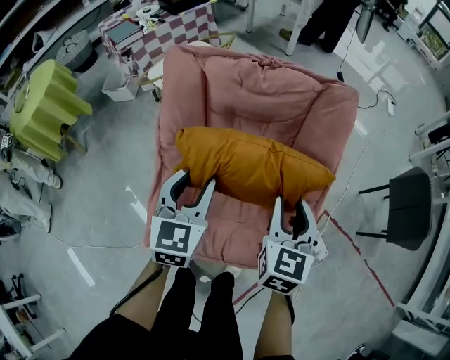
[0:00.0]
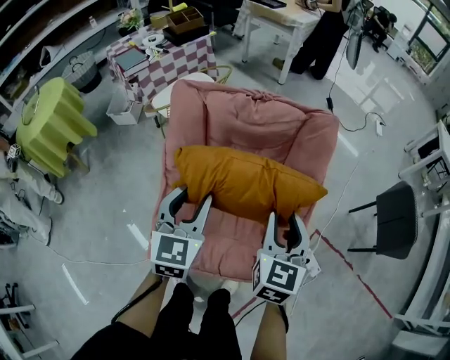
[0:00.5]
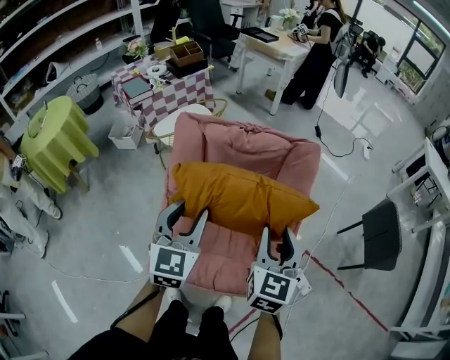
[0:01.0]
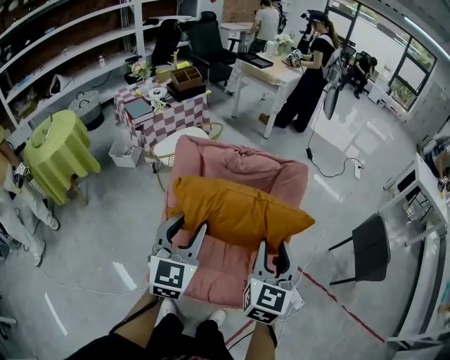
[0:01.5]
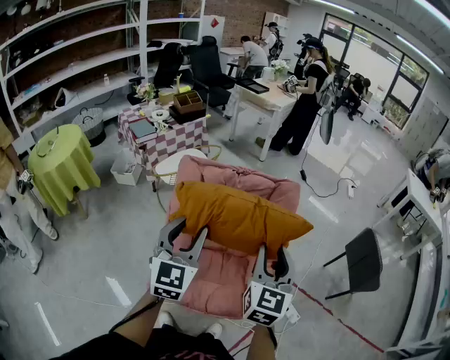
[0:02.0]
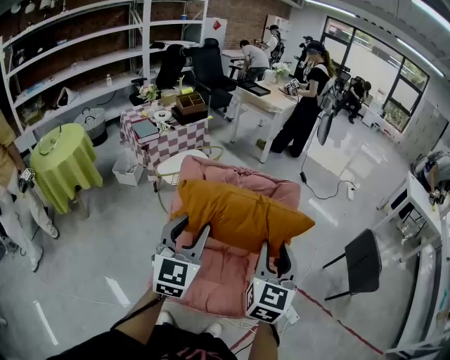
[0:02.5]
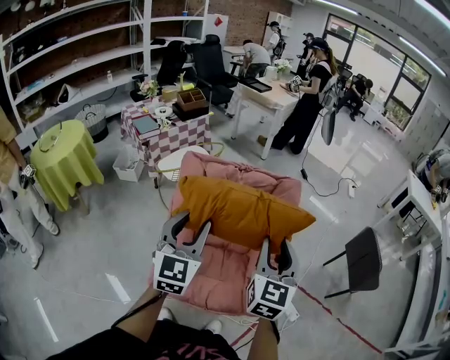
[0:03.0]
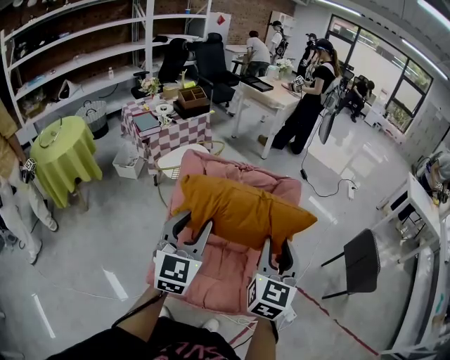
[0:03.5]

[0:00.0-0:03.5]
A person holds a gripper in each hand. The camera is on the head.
0:00.0 to 0:02.0: Both grippers travel together upward, approximately 25 cm.
0:02.0 to 0:03.5: The grippers move only a little.

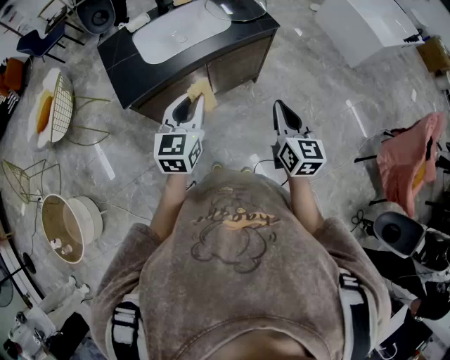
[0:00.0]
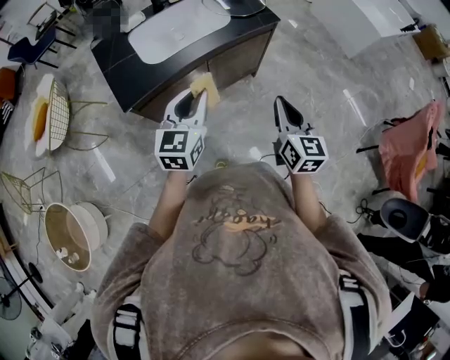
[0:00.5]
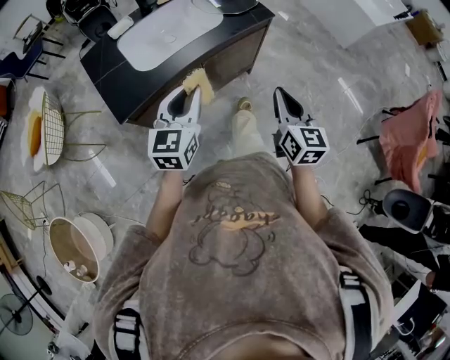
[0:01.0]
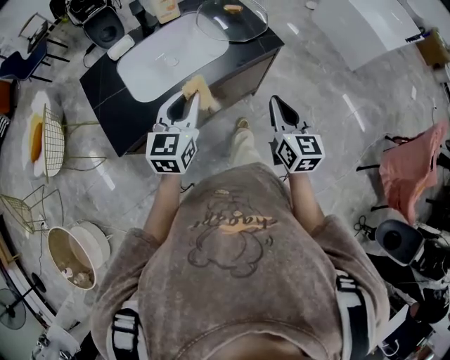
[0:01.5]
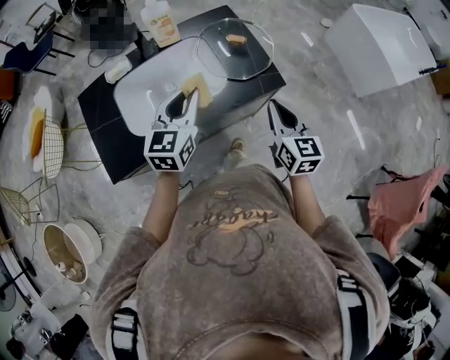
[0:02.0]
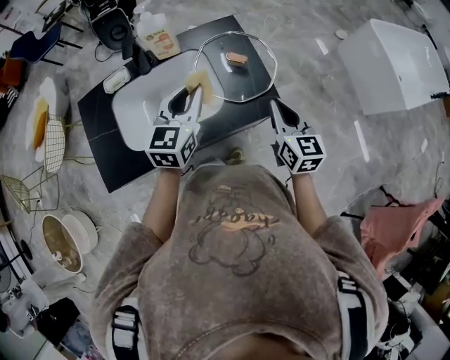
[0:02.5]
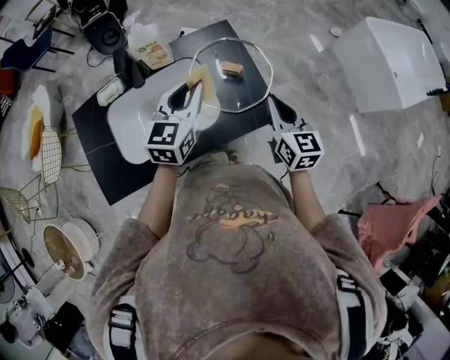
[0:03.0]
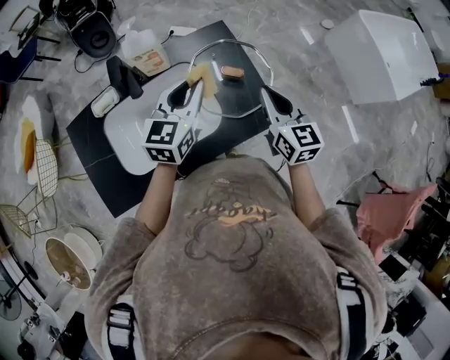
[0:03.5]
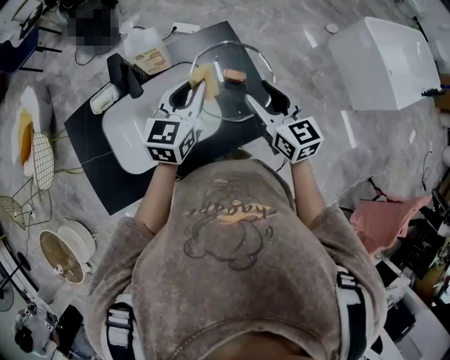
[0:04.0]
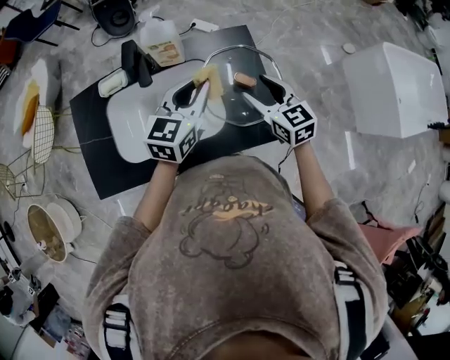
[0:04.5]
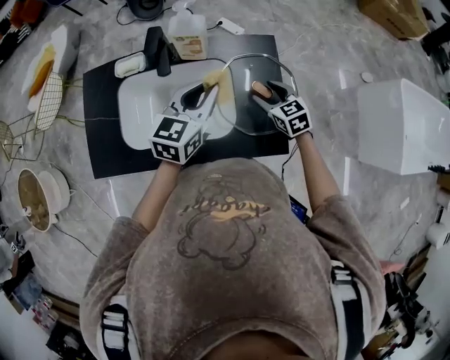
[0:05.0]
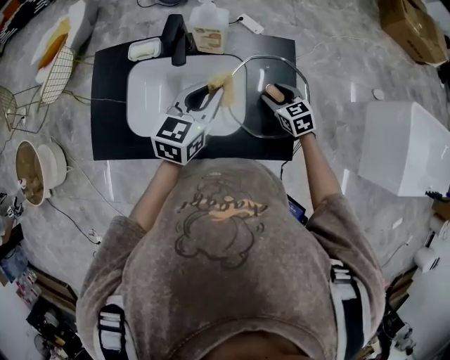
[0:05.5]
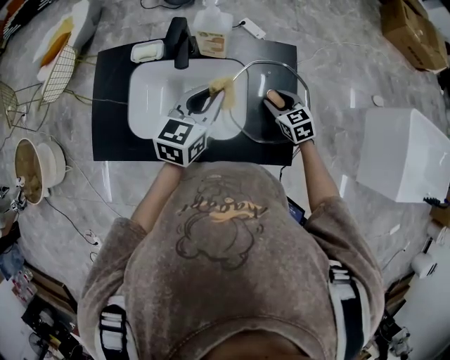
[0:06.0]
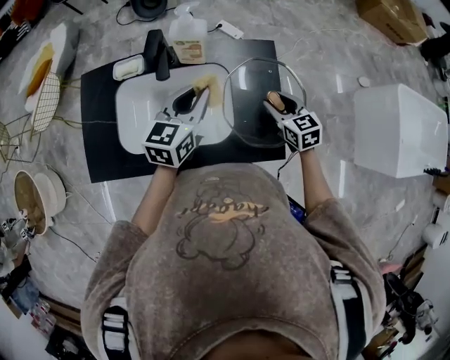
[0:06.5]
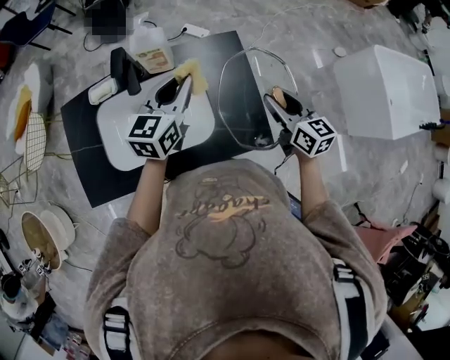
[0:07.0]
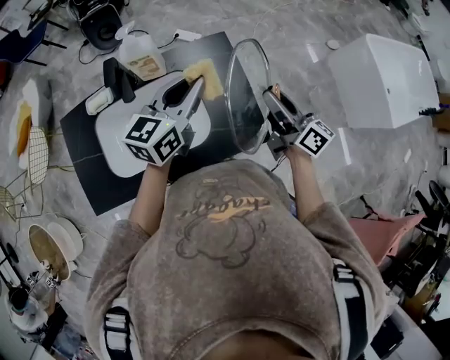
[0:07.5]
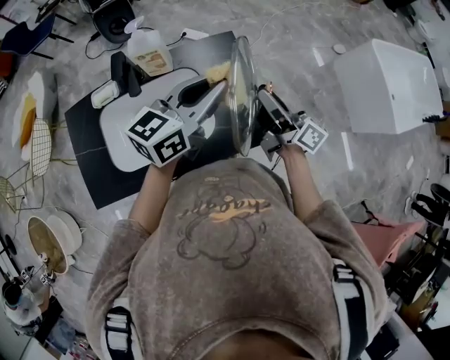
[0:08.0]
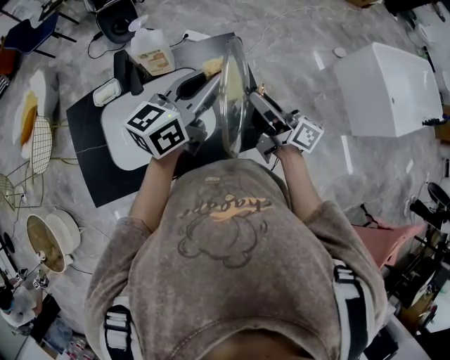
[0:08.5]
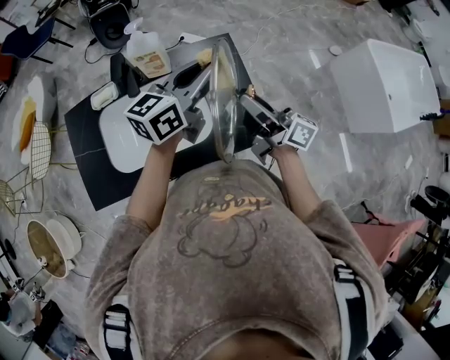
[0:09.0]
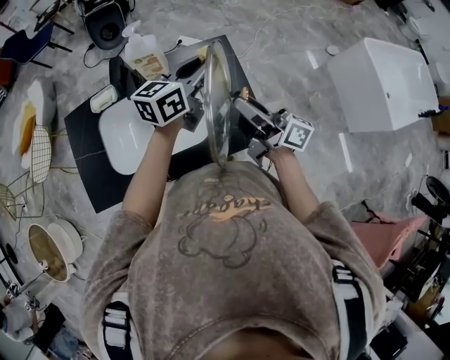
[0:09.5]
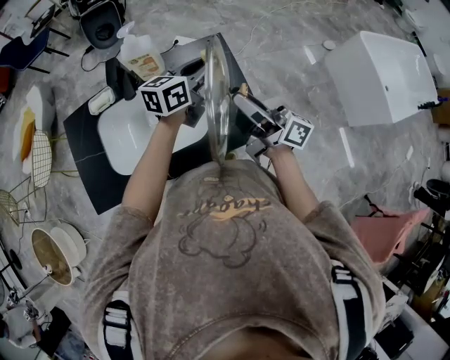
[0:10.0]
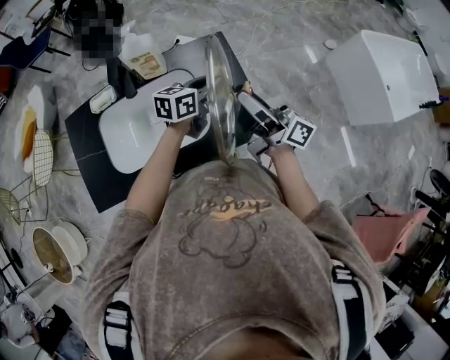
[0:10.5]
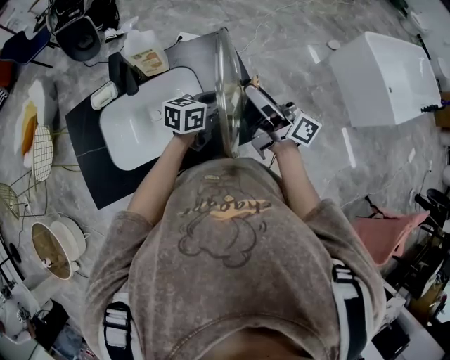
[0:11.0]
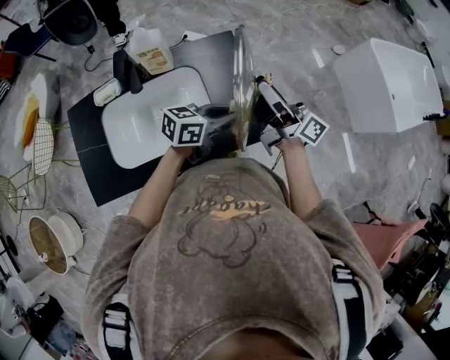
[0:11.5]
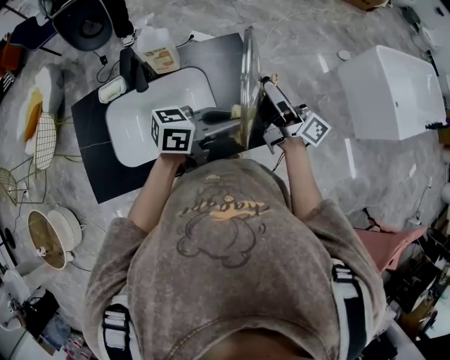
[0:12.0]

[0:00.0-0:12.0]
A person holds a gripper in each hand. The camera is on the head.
0:00.0 to 0:02.0: The two grippers go approximately 40 cm forward.
0:02.0 to 0:04.0: The two grippers go about 20 cm forward. The right gripper opens its fingers.
0:04.0 to 0:06.0: The left gripper moves to the left, about 5 cm, and swivels approximately 20 degrees. The right gripper heads downward and forward, covering approximately 20 cm, and rotates approximately 40 degrees.
0:06.0 to 0:08.0: The left gripper moves about 15 cm, and swivels approximately 40 degrees. The right gripper goes about 20 cm upward, and angles its fingers upward, by some 50 degrees.
0:08.0 to 0:10.0: The left gripper is displaced downward and forward by about 10 cm. Meanwhile the right gripper moves roughly 10 cm.
0:10.0 to 0:12.0: The right gripper heads forward, covering about 5 cm, while the left gripper shifts about 15 cm backward, and turns by about 30 degrees.

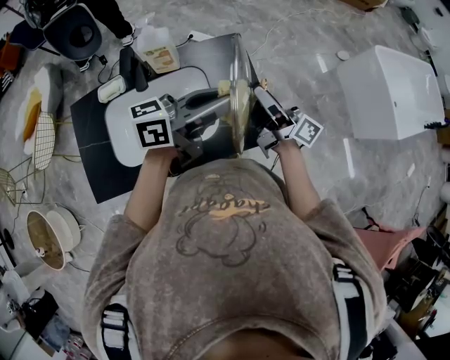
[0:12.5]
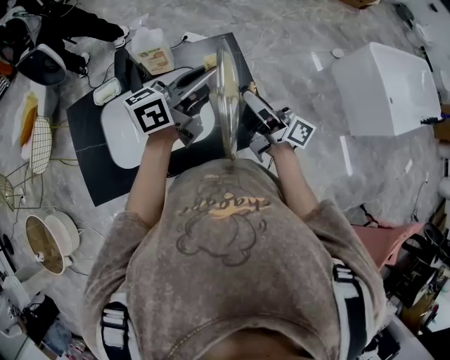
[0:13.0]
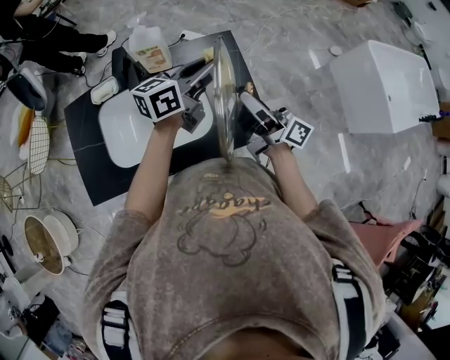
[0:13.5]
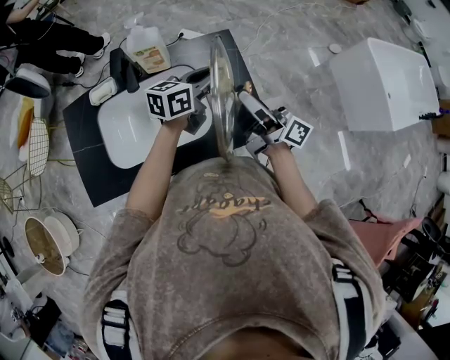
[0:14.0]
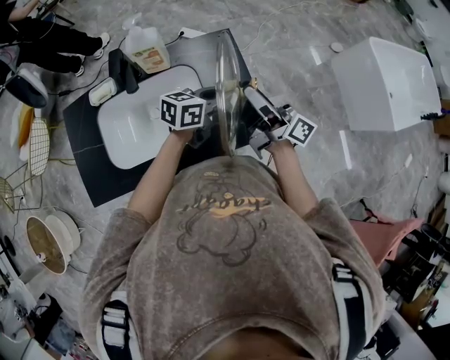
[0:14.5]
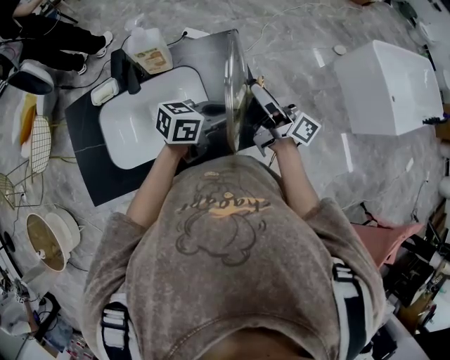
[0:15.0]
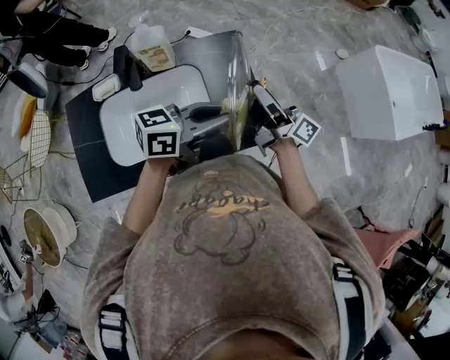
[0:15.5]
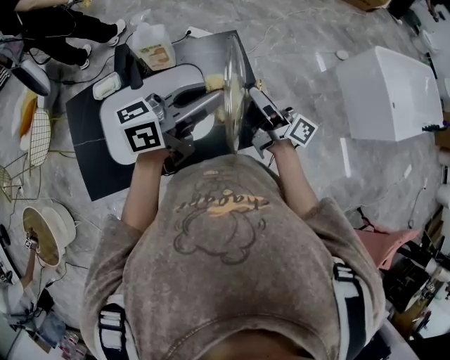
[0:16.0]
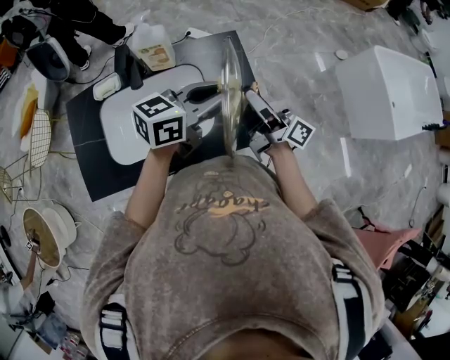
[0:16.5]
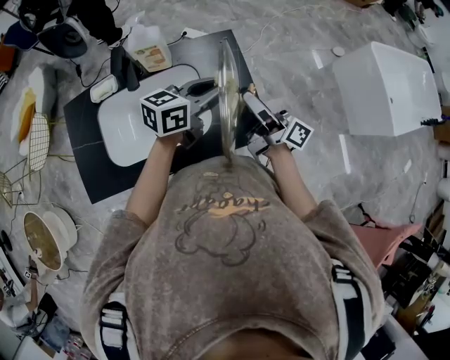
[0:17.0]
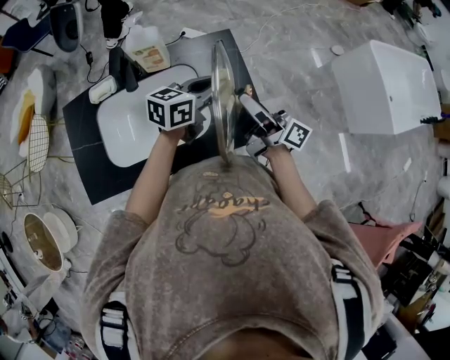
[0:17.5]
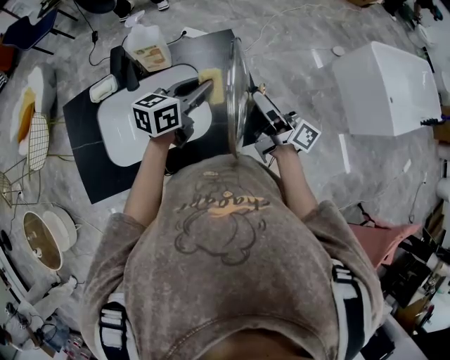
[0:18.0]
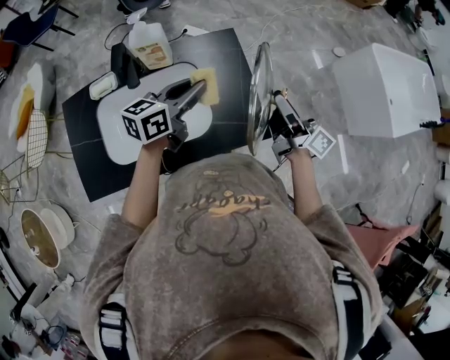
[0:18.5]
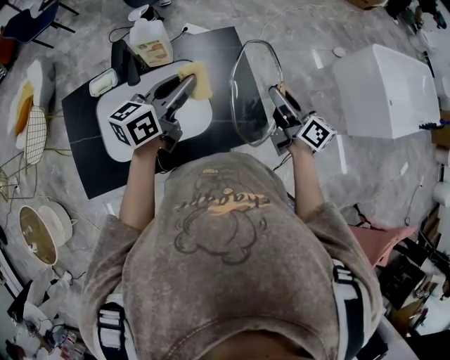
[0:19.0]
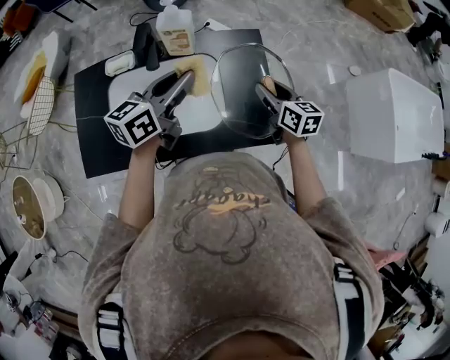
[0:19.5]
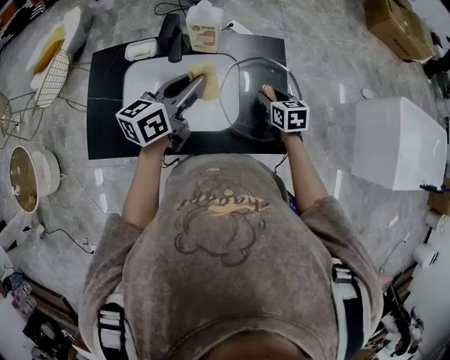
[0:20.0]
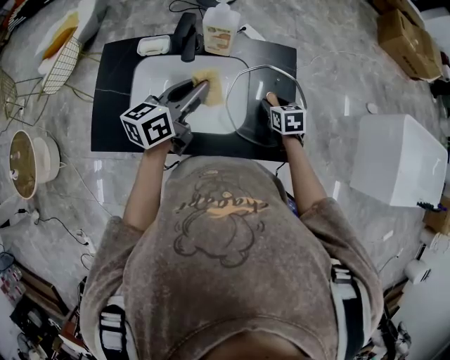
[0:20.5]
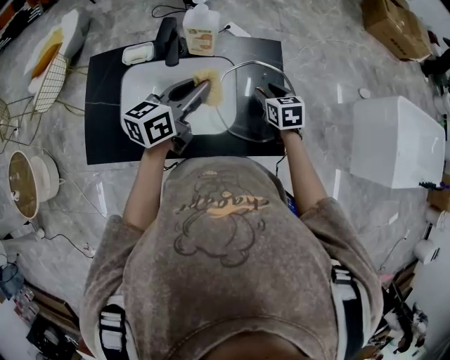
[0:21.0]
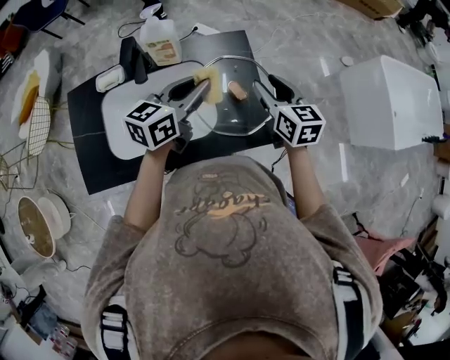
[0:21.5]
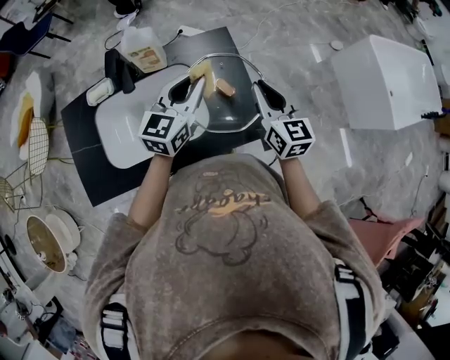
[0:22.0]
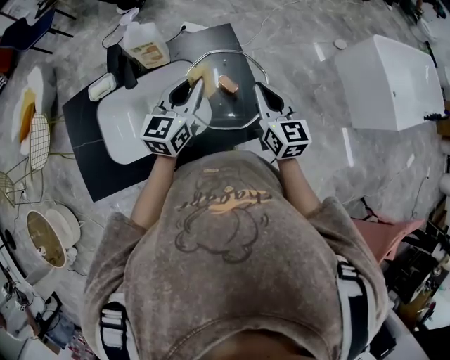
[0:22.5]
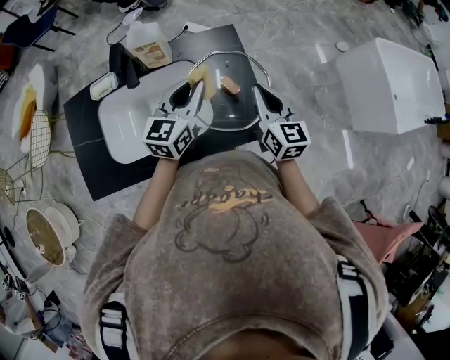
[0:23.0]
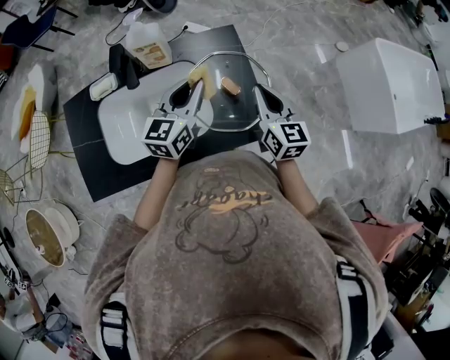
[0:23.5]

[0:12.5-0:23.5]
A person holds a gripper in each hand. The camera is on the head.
0:12.5 to 0:14.5: The left gripper is displaced downward by approximately 15 cm, and rotates roughly 20 degrees.
0:14.5 to 0:16.0: The left gripper heads upward, covering approximately 15 cm, and swivels about 20 degrees.
0:16.0 to 0:18.0: The left gripper moves downward and forward, roughly 15 cm, and rotates about 20 degrees.
0:18.0 to 0:20.0: The left gripper shifts about 15 cm to the left, and swivels roughly 20 degrees. Meanwhile the right gripper travels downward, to the left and forward by about 20 cm, and tips its fingers downward by about 60 degrees.
0:20.0 to 0:21.5: The left gripper travels to the right by some 10 cm. Meanwhile the right gripper goes approximately 15 cm upward, and changes its angle by roughly 20 degrees.
0:21.5 to 0:23.5: The right gripper closes up.
